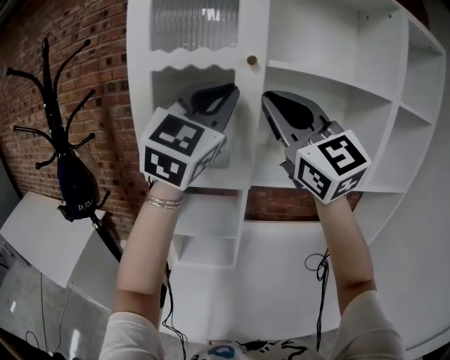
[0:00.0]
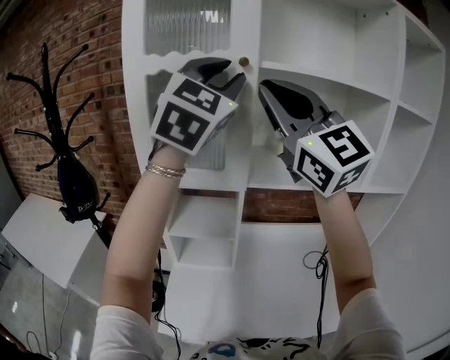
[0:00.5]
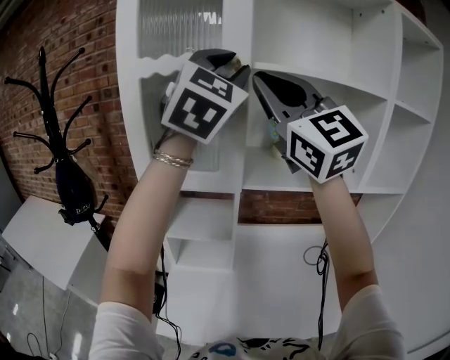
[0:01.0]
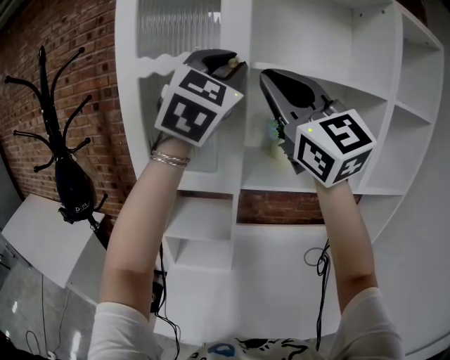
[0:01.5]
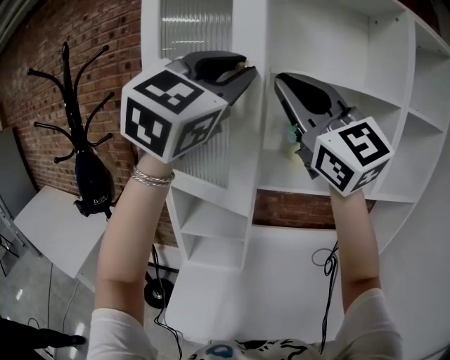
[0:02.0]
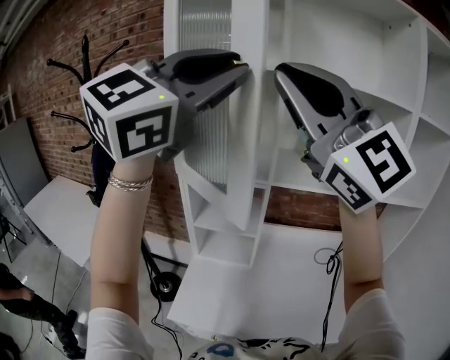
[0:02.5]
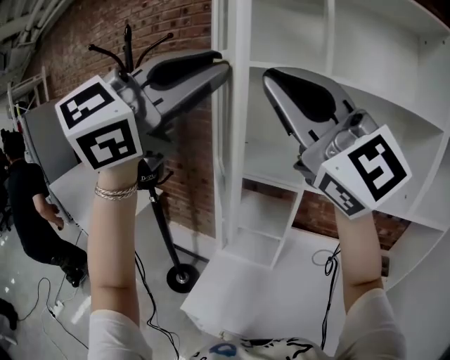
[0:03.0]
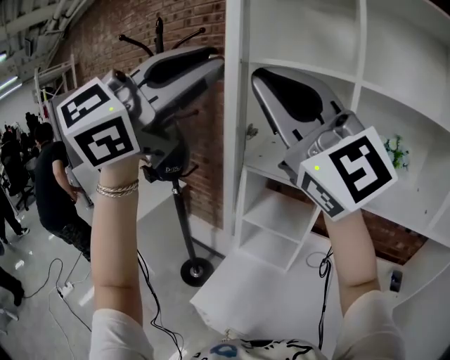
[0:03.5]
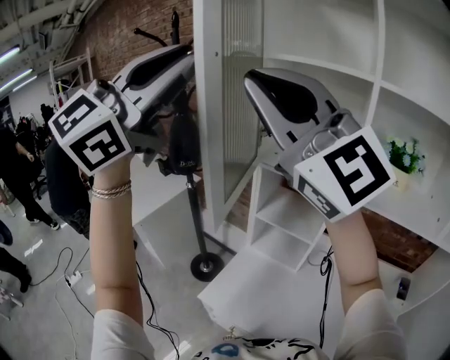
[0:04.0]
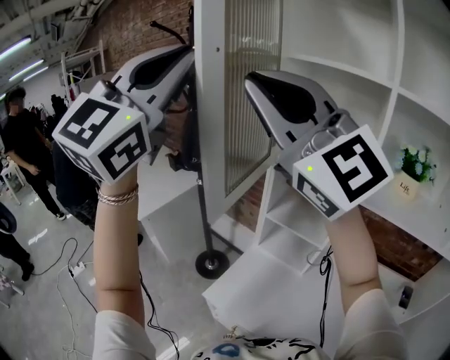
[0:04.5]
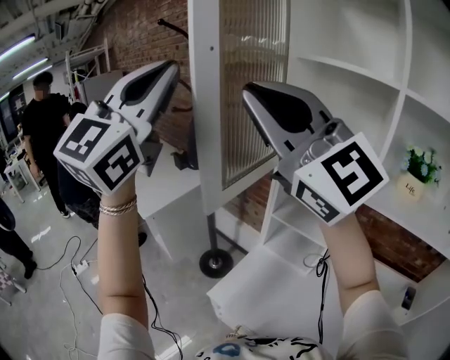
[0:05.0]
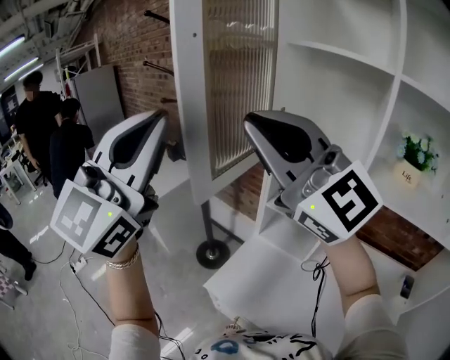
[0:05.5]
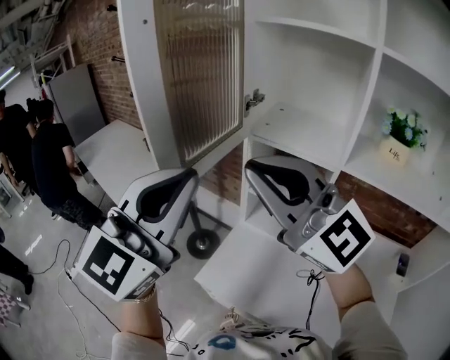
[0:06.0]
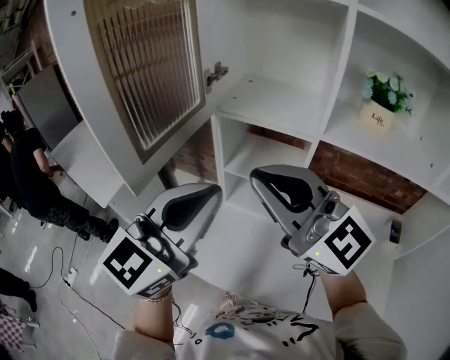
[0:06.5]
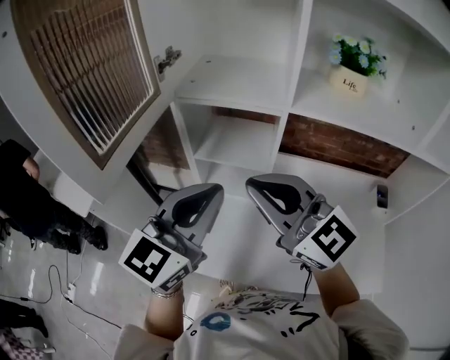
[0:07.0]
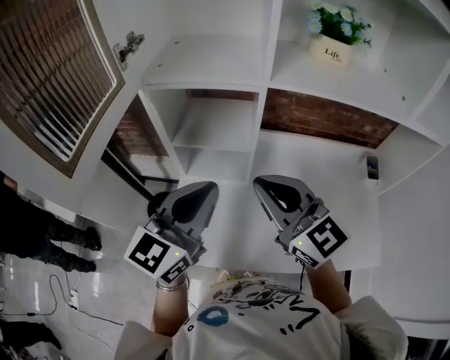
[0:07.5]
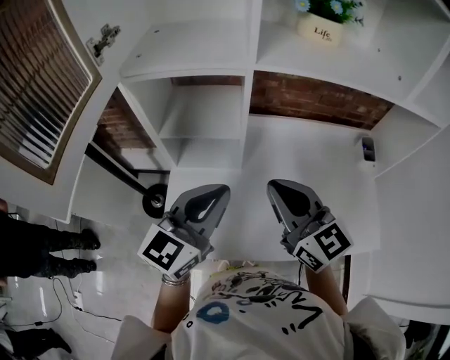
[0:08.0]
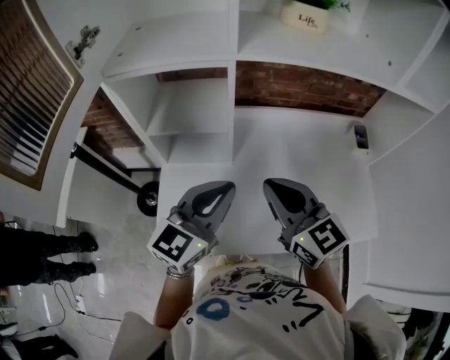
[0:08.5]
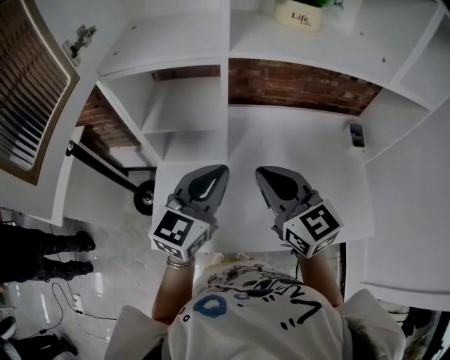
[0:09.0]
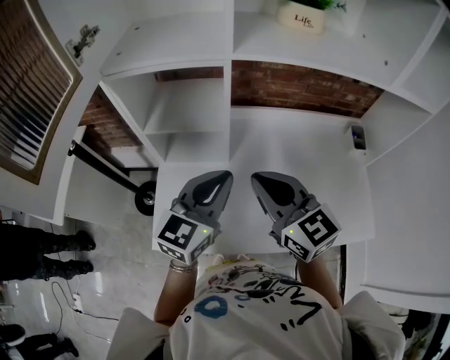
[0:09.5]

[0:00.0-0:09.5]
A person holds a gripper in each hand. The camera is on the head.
0:00.0 to 0:02.0: The right gripper ends up roughly 5 cm from where it was. Meanwhile the left gripper is displaced upward and backward by approximately 10 cm.
0:02.0 to 0:04.0: Both grippers travel together to the left, about 25 cm. The right gripper swivels roughly 30 degrees.
0:04.0 to 0:05.5: The right gripper moves downward, about 10 cm; the left gripper goes approximately 10 cm downward and to the left, and changes its angle by about 20 degrees.
0:05.5 to 0:07.5: The grippers both shift downward by about 30 cm. The right gripper rotates approximately 50 degrees, while the left gripper turns by about 50 degrees.
0:07.5 to 0:09.5: The two grippers go about 10 cm downward and to the right.

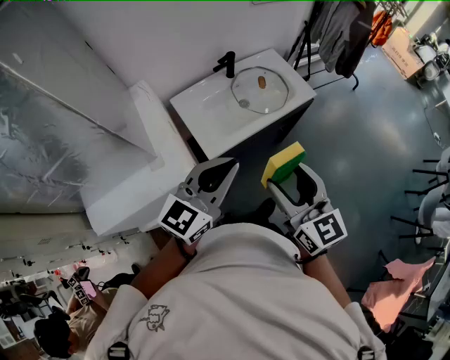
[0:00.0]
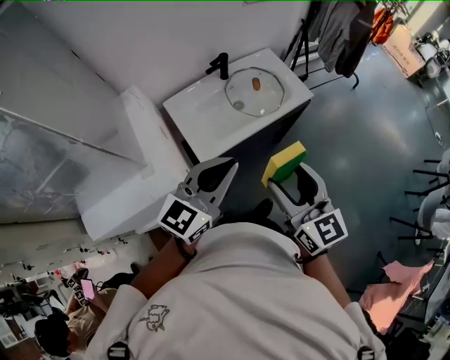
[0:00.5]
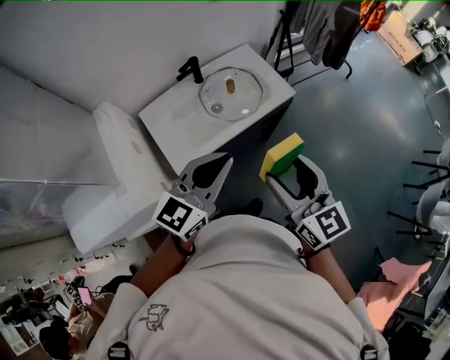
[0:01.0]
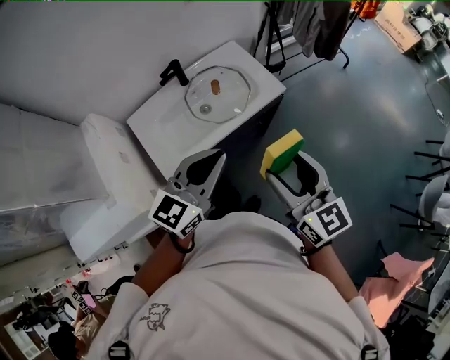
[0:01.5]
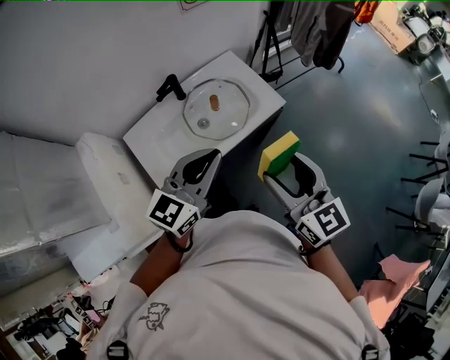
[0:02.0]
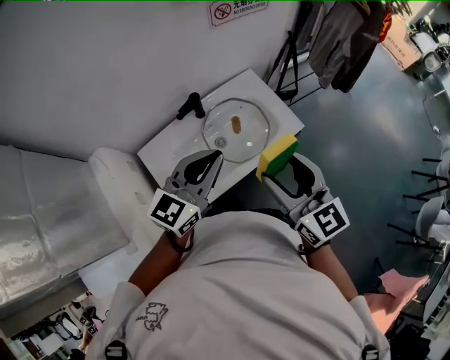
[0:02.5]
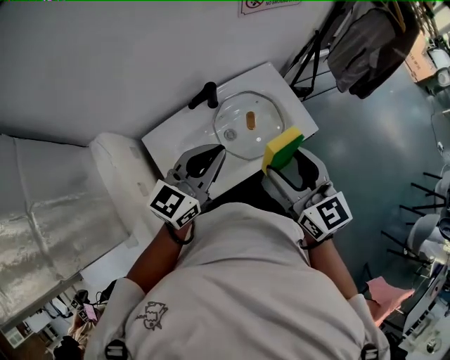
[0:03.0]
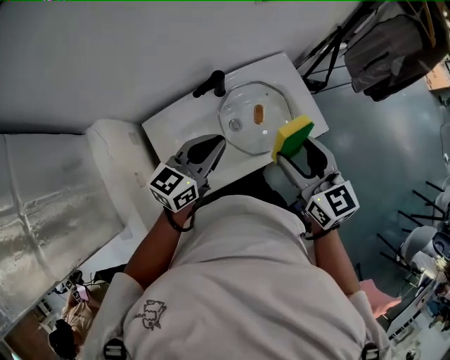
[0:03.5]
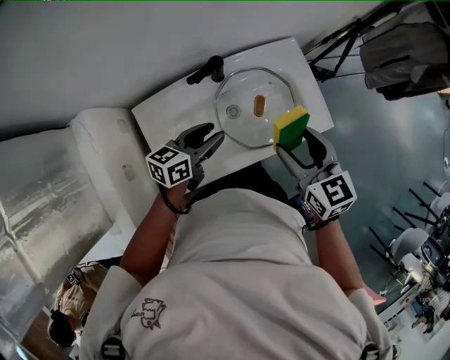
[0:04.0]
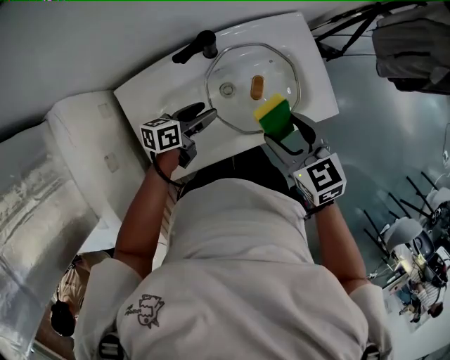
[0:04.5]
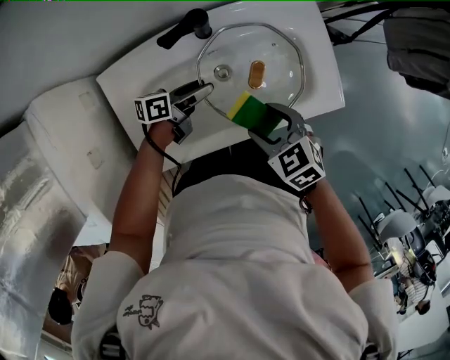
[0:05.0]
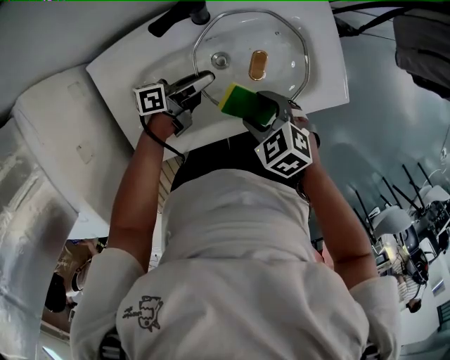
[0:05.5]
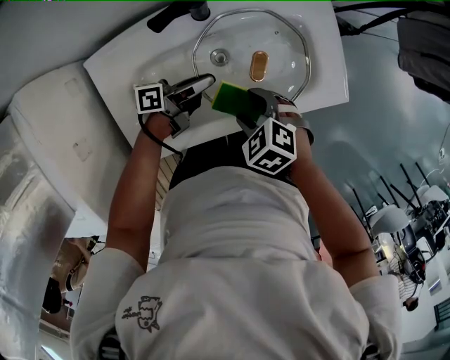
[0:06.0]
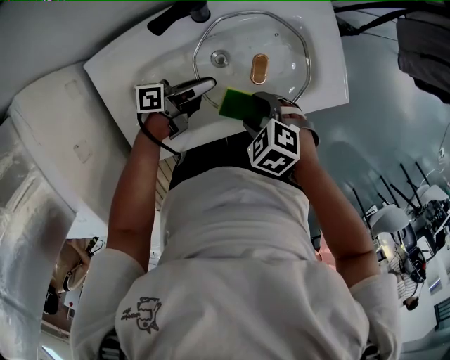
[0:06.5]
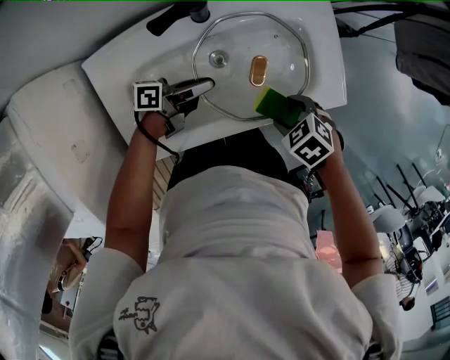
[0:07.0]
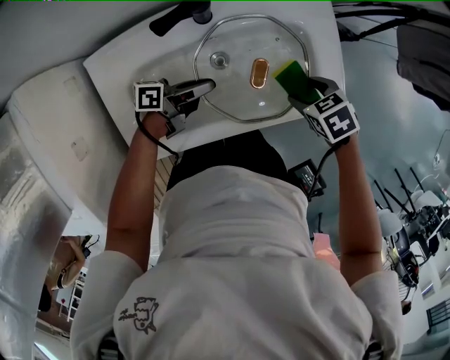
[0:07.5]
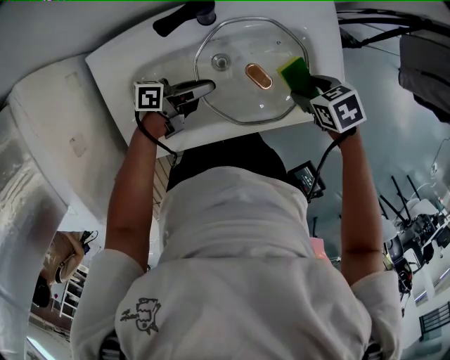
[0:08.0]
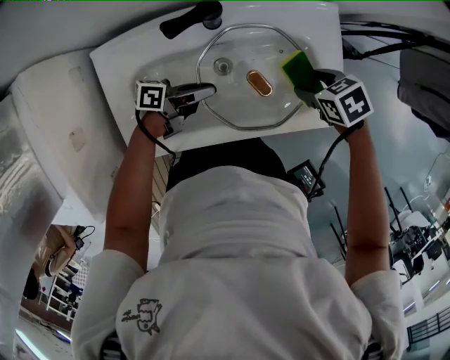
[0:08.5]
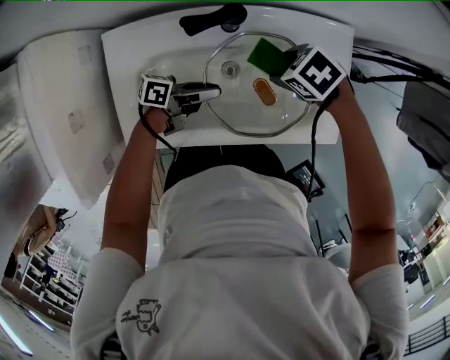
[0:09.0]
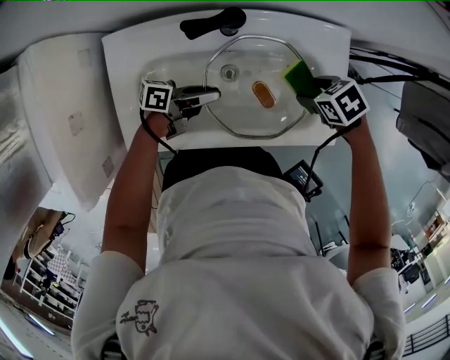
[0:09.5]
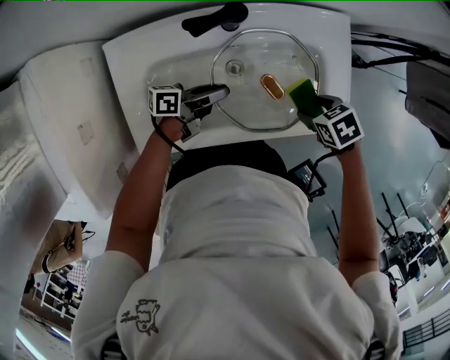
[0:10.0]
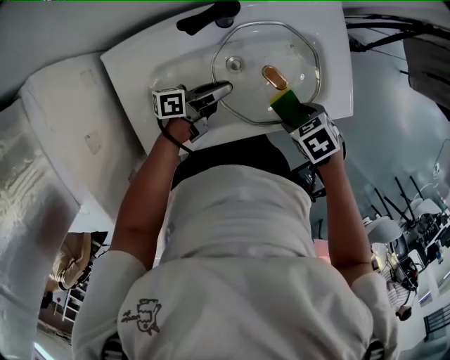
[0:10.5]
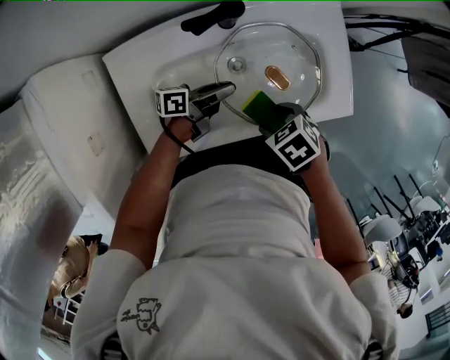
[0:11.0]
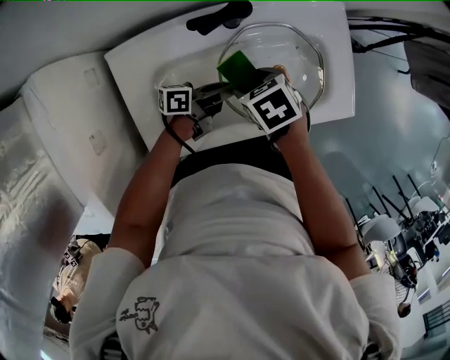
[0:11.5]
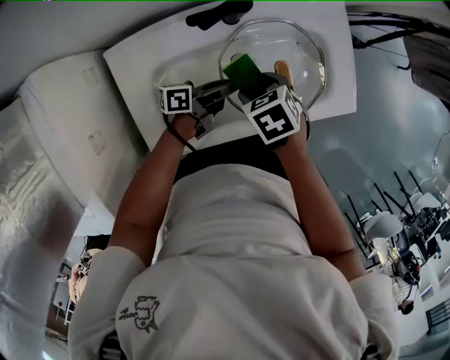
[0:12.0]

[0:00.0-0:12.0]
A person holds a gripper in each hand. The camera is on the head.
0:00.0 to 0:02.0: Both grippers travel together forward and to the right, approximately 30 cm.
0:02.0 to 0:04.0: The right gripper heads forward, downward and to the left, covering approximately 30 cm, and changes its angle by roughly 20 degrees; the left gripper travels downward, forward and to the left by some 35 cm, rotates roughly 40 degrees, and opens up.
0:04.0 to 0:06.0: Both grippers move downward, about 25 cm. The right gripper points its fingers approximately 40 degrees further downward. Meanwhile the left gripper twists about 40 degrees counterclockwise, seen from behind.
0:06.0 to 0:08.0: The right gripper moves roughly 20 cm, and turns by roughly 30 degrees.
0:10.0 to 0:12.0: The right gripper shifts by some 20 cm.

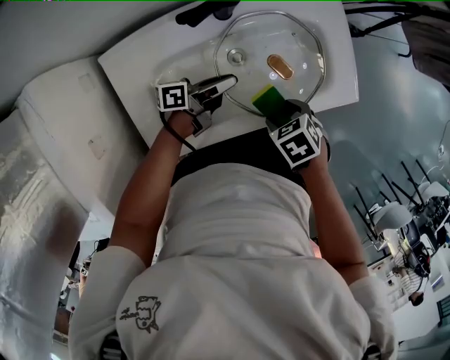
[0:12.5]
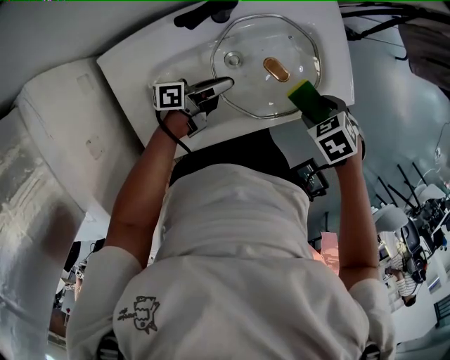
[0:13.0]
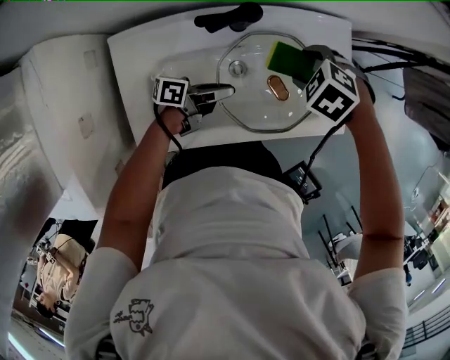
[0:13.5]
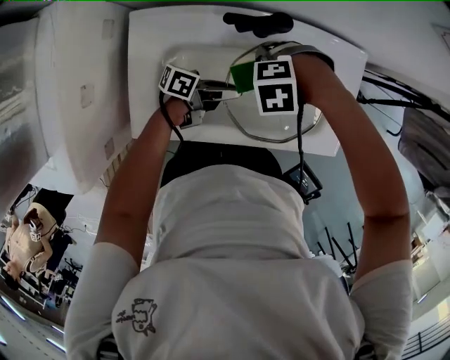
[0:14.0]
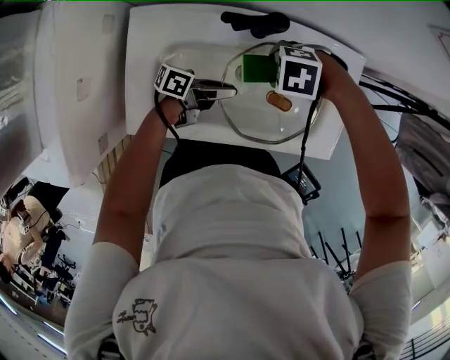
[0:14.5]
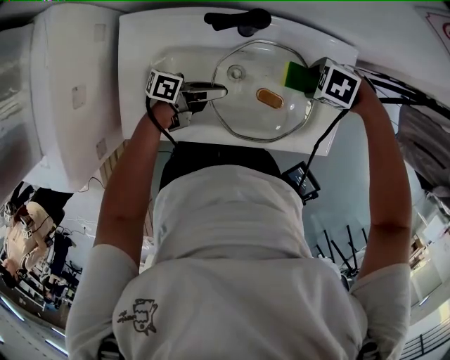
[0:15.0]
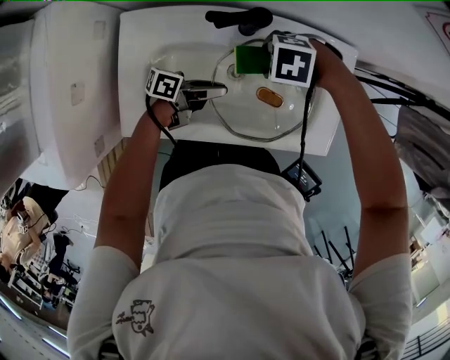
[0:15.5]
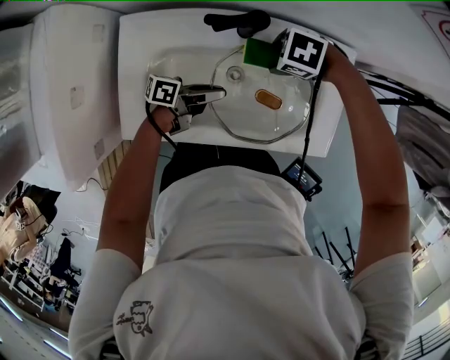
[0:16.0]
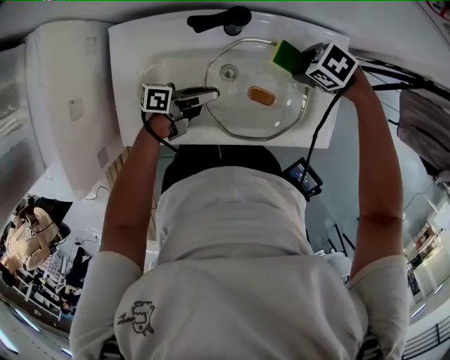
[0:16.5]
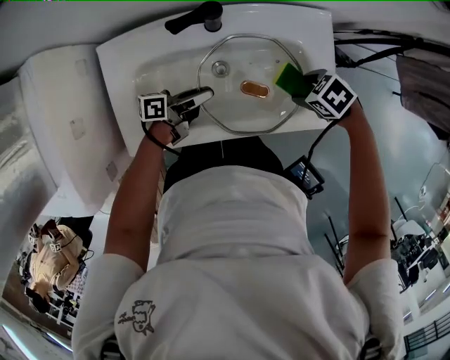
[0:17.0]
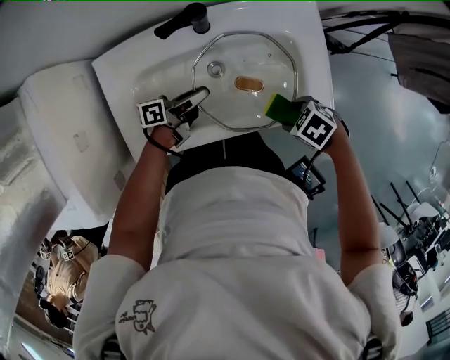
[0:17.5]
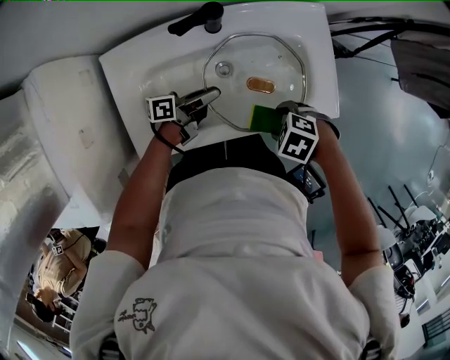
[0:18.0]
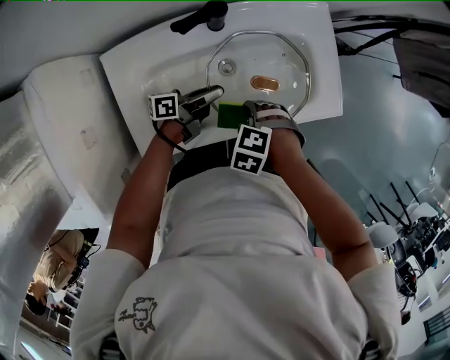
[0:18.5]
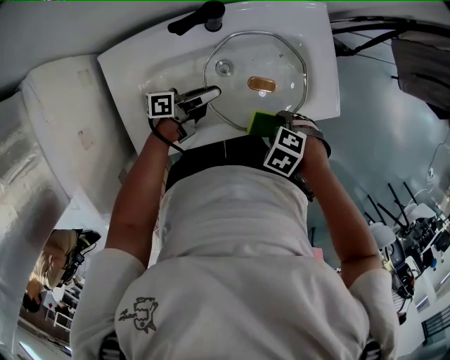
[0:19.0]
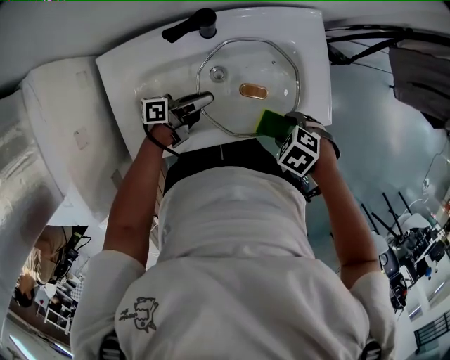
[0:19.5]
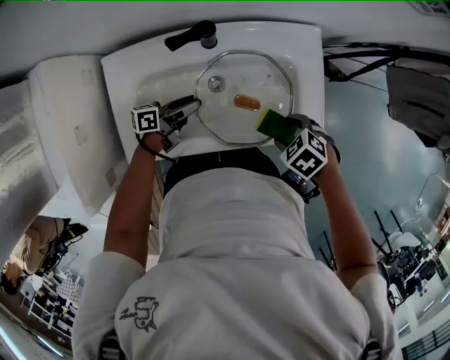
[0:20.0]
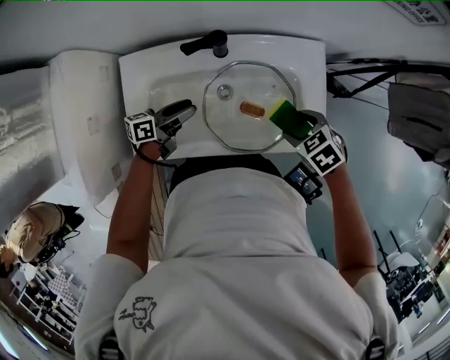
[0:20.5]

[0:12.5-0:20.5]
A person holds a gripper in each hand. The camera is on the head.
0:12.5 to 0:14.5: The right gripper moves some 20 cm, and rotates around the line of its fingers by about 70 degrees, counterclockwise from behind.
0:14.5 to 0:16.5: The right gripper ends up roughly 15 cm from where it was, and rotates approximately 30 degrees.
0:16.5 to 0:18.5: The right gripper shifts by some 25 cm.
0:18.5 to 0:20.5: The right gripper shifts by some 20 cm, and changes its angle by some 30 degrees. The left gripper moves some 10 cm, and swivels roughly 20 degrees.
